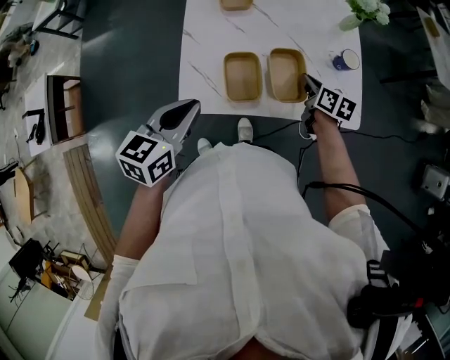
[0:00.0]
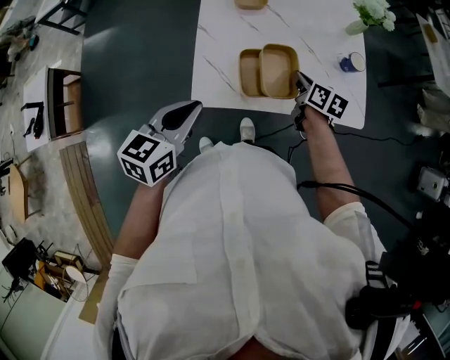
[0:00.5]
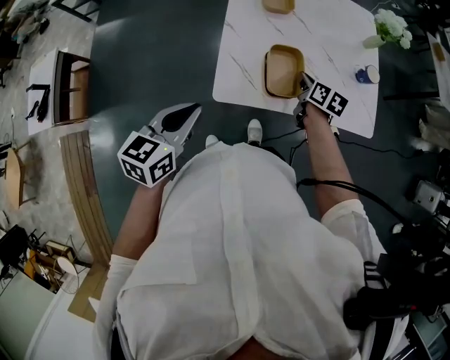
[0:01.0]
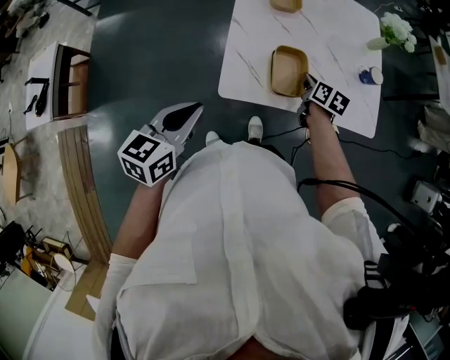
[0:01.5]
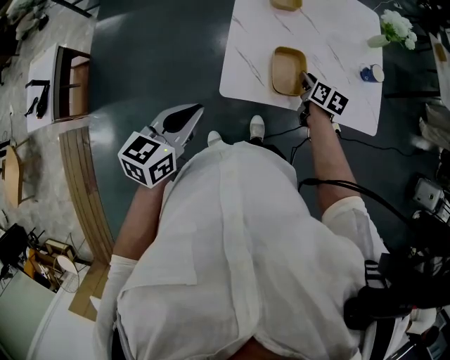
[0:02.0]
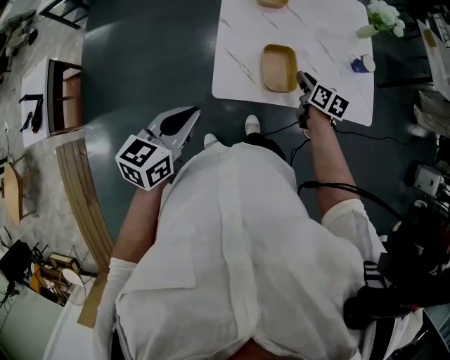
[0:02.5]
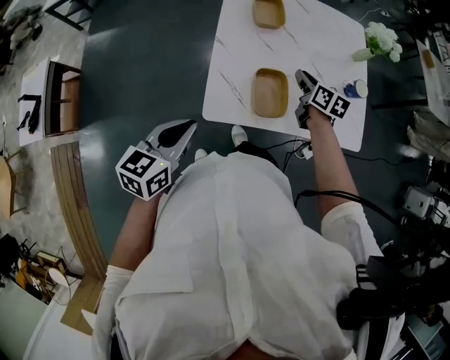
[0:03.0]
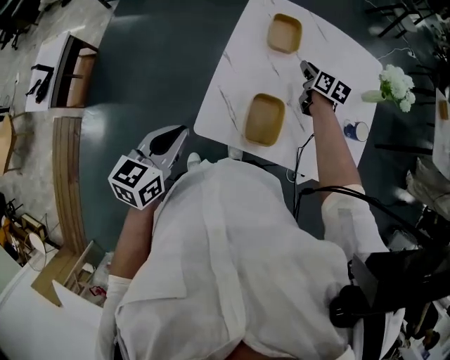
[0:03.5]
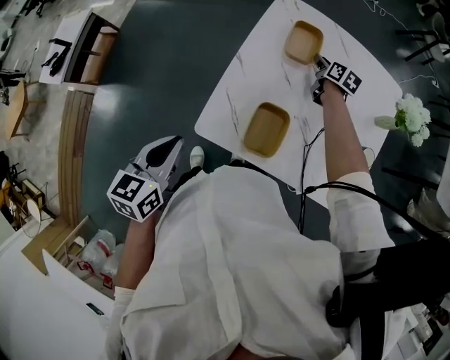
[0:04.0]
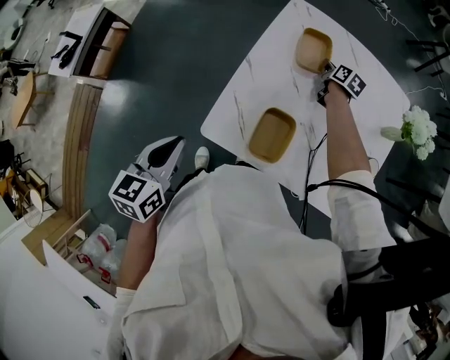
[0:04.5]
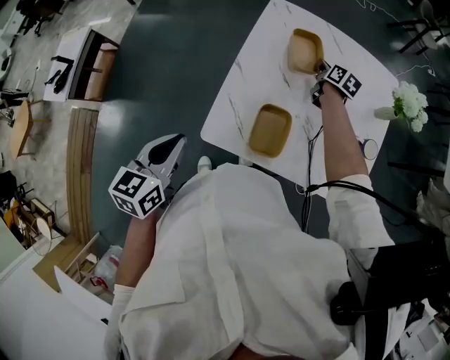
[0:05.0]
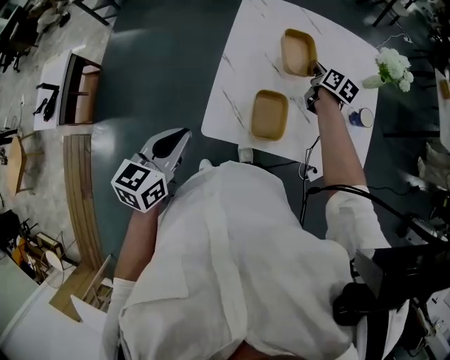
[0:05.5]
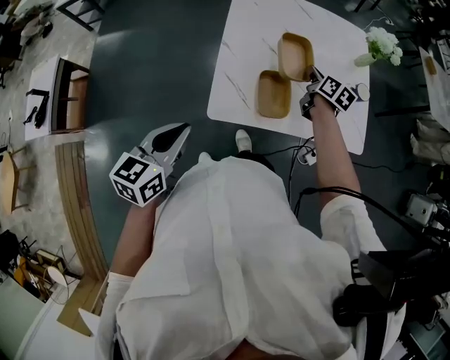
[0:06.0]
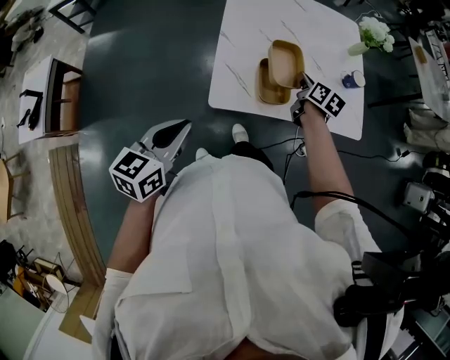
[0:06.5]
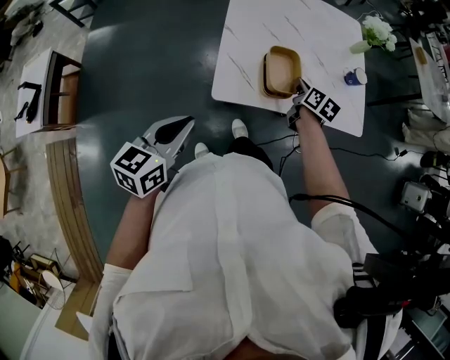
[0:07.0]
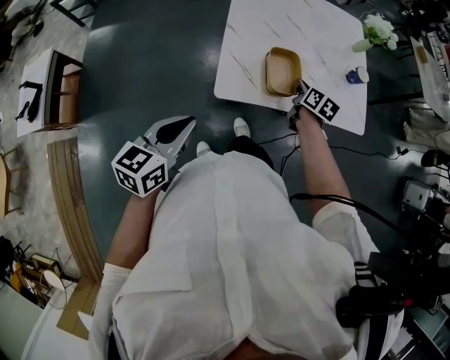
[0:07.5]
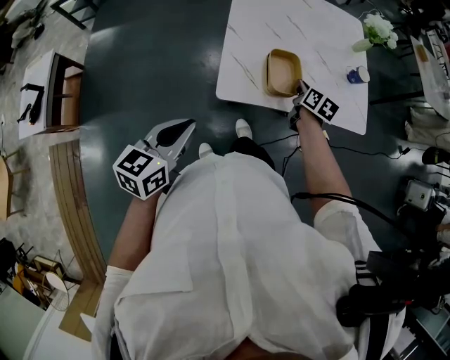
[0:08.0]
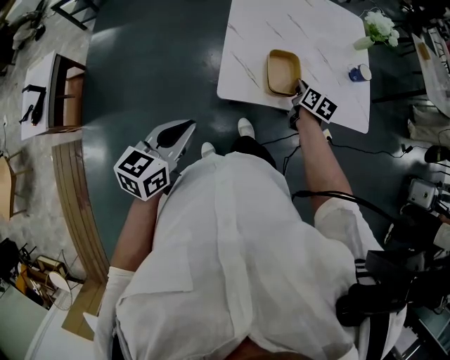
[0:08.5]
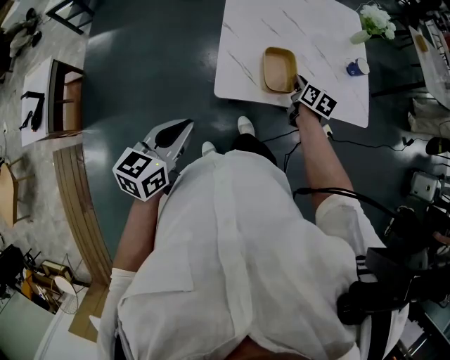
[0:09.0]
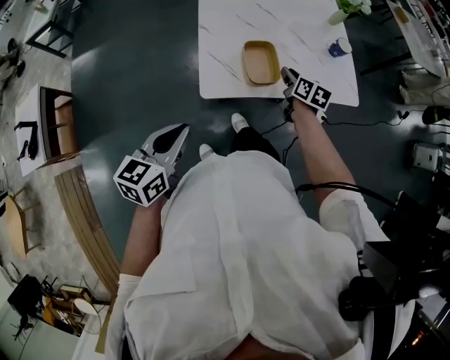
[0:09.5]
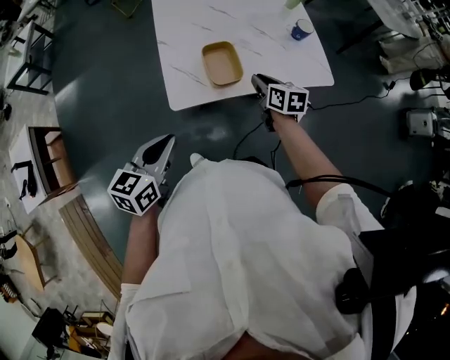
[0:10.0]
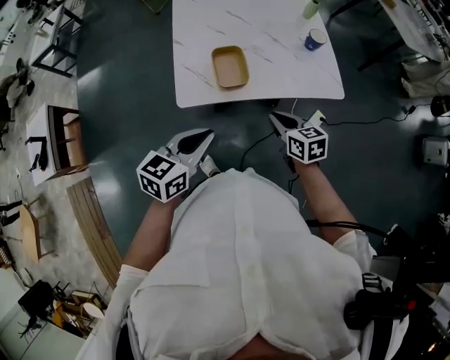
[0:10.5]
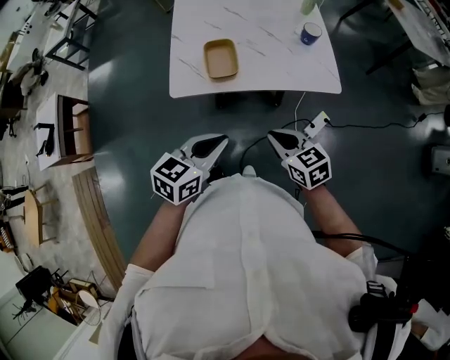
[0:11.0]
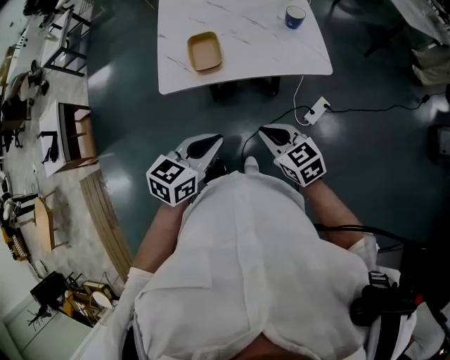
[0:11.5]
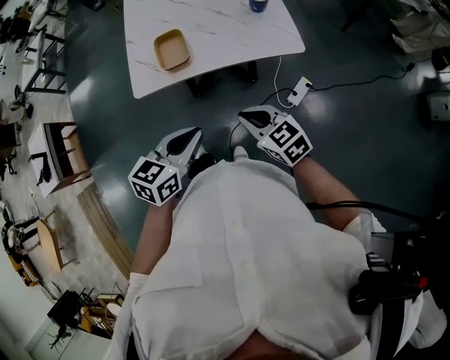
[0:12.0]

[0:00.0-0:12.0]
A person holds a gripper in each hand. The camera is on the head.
0:00.0 to 0:02.0: The left gripper heads to the left and backward, covering some 15 cm, while the right gripper heads to the left, covering roughly 10 cm.
0:02.0 to 0:04.0: The right gripper is displaced forward by roughly 30 cm, while the left gripper heads forward, covering about 5 cm, and changes its angle by roughly 30 degrees.
0:04.0 to 0:06.0: The right gripper travels backward by roughly 25 cm, and rotates some 20 degrees; the left gripper changes place by approximately 5 cm, and changes its angle by approximately 20 degrees.
0:06.0 to 0:08.0: The left gripper is displaced backward by approximately 5 cm; the right gripper shifts about 15 cm backward.
0:08.0 to 0:10.0: The right gripper is displaced backward by about 5 cm; the left gripper moves to the right, approximately 5 cm.
0:10.0 to 0:12.0: The left gripper shifts some 25 cm to the right. Meanwhile the right gripper goes approximately 25 cm backward, and changes its angle by some 40 degrees.

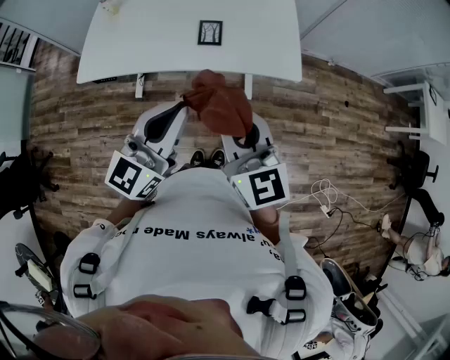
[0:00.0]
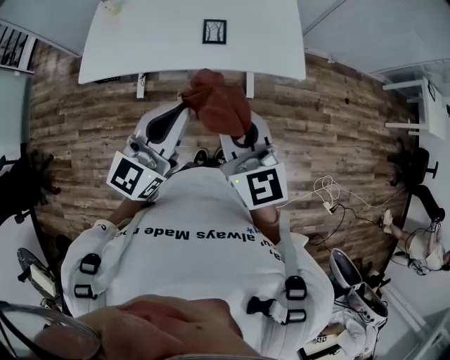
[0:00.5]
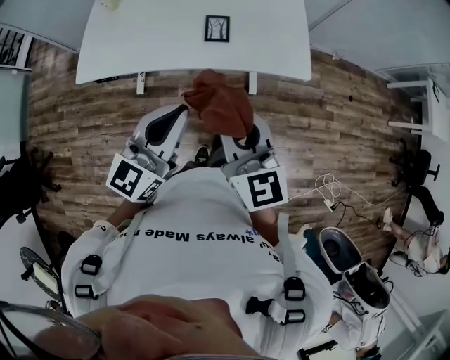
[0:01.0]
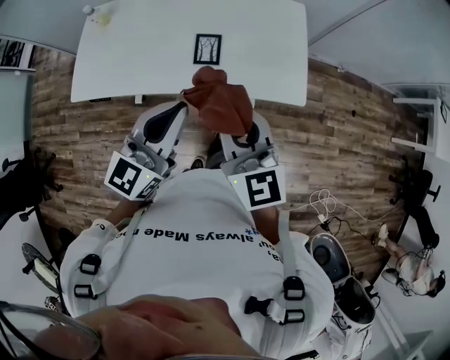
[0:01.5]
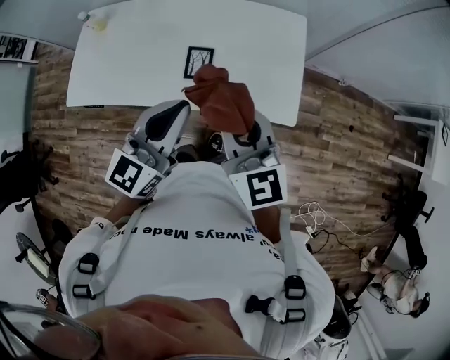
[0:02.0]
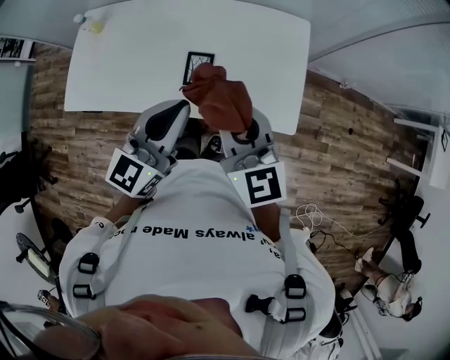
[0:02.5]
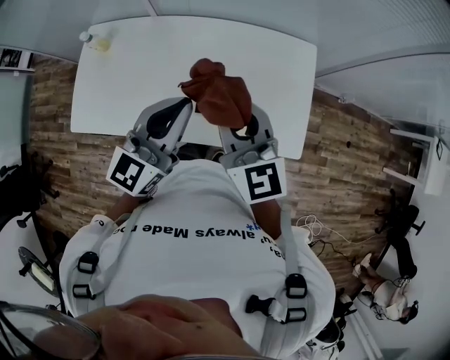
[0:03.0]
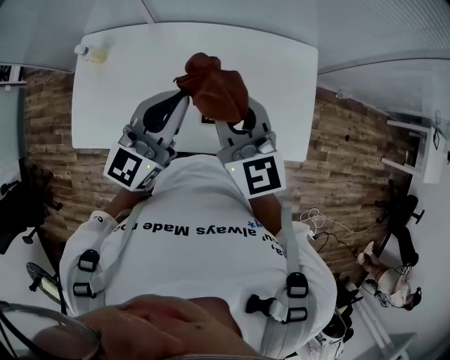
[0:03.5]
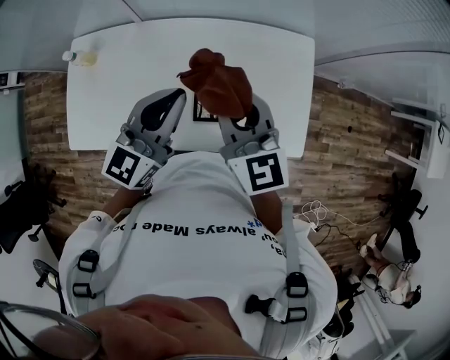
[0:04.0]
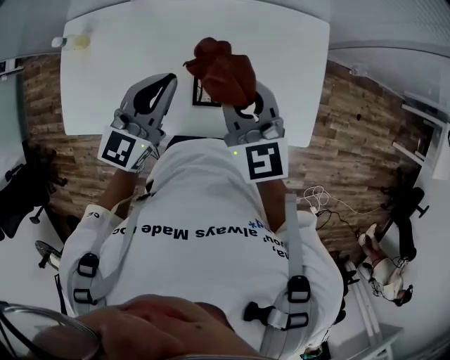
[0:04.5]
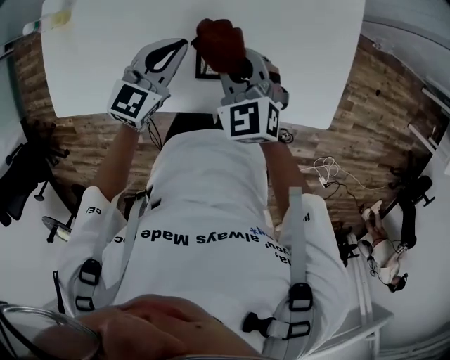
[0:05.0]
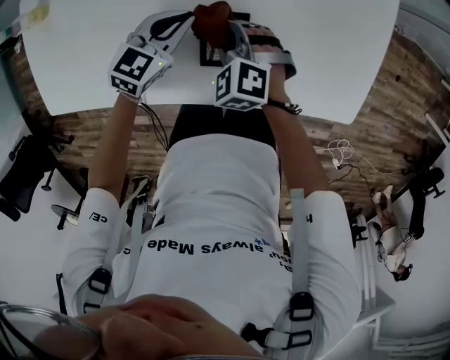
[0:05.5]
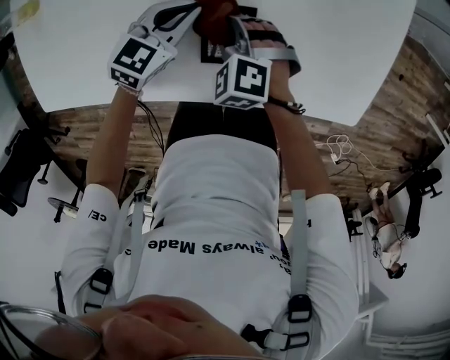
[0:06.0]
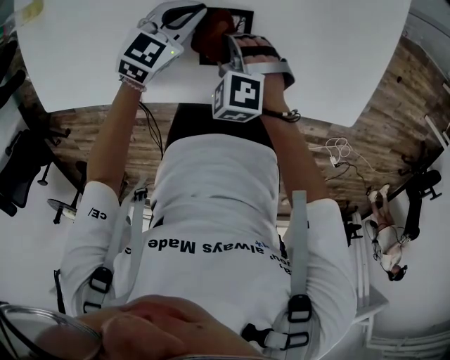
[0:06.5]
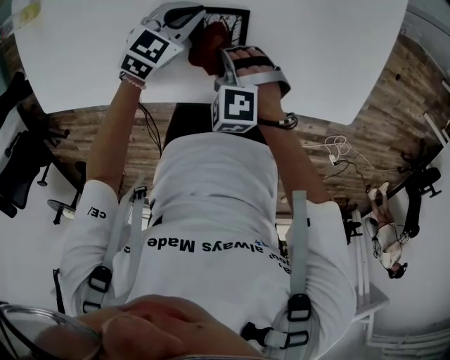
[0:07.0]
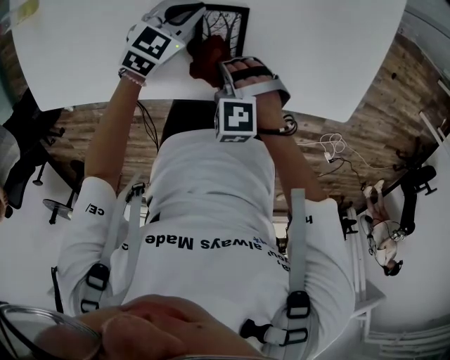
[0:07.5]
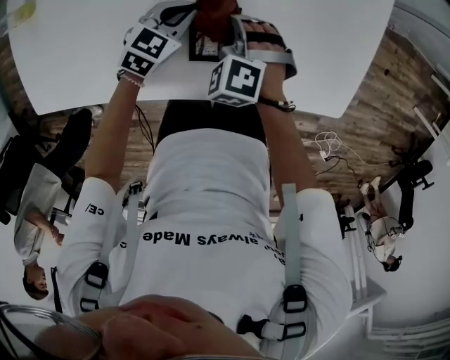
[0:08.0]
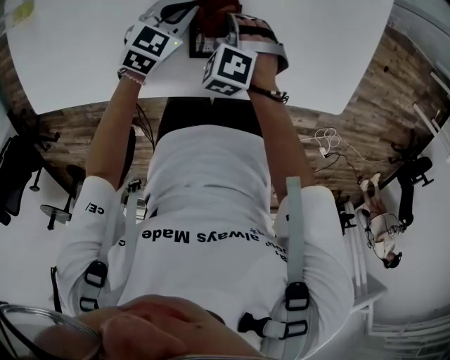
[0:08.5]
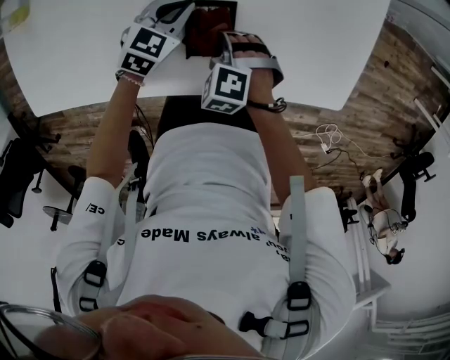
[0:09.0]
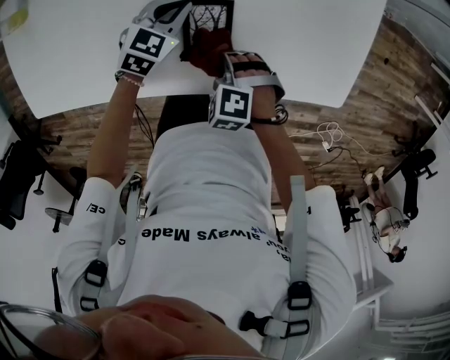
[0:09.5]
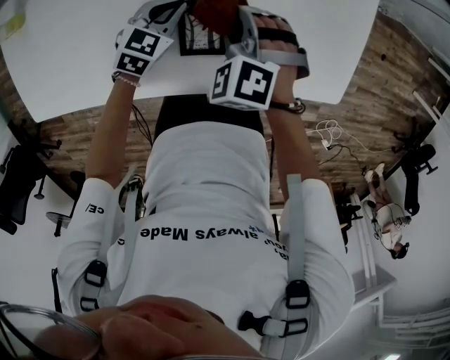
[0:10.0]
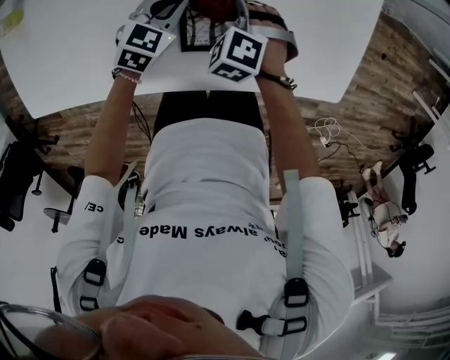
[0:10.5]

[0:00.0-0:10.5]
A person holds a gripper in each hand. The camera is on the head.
0:00.0 to 0:02.0: Both grippers move forward, some 40 cm.
0:02.0 to 0:04.0: The grippers both shift forward by some 35 cm.
0:04.0 to 0:06.5: The two grippers go about 50 cm downward. The left gripper tilts its fingers approximately 30 degrees downward. The right gripper tilts its fingers about 50 degrees downward.
0:06.5 to 0:08.5: The right gripper changes place by about 5 cm.
0:08.5 to 0:10.5: The right gripper travels backward and back again, approximately 10 cm each way.

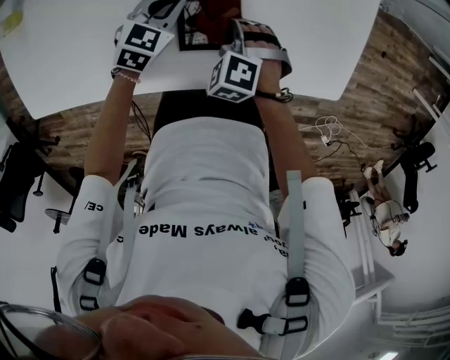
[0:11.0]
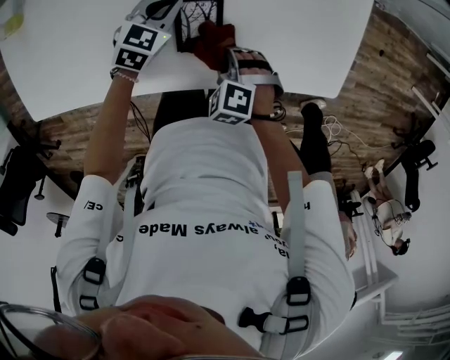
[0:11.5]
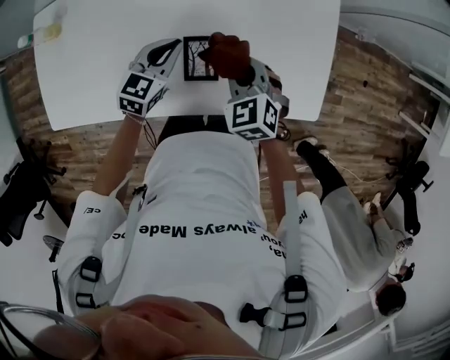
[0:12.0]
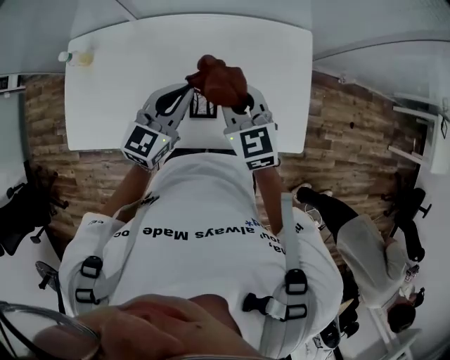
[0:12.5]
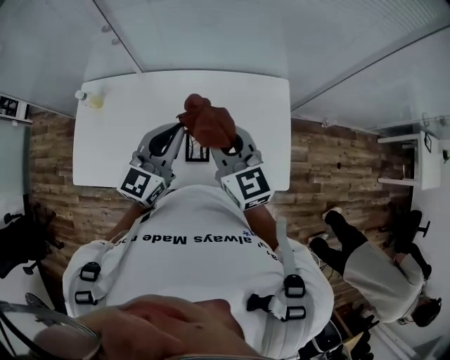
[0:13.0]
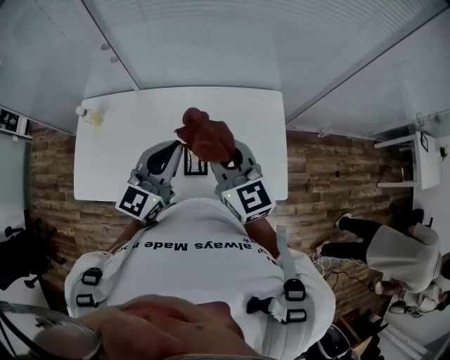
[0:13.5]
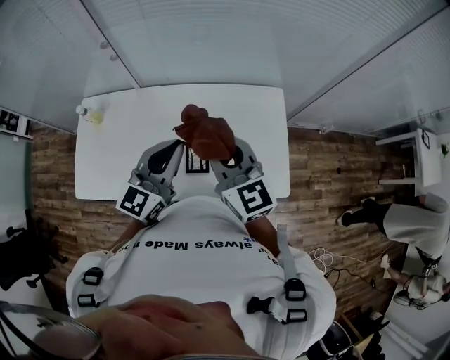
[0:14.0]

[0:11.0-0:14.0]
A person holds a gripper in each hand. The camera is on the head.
0:11.0 to 0:12.5: Both grippers move upward, approximately 50 cm. The right gripper tips its fingers upward by approximately 50 degrees. The left gripper tips its fingers upward by roughly 30 degrees.
0:12.5 to 0:14.0: The grippers both shift upward and backward by roughly 20 cm.

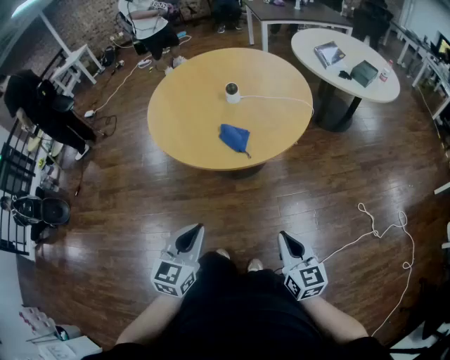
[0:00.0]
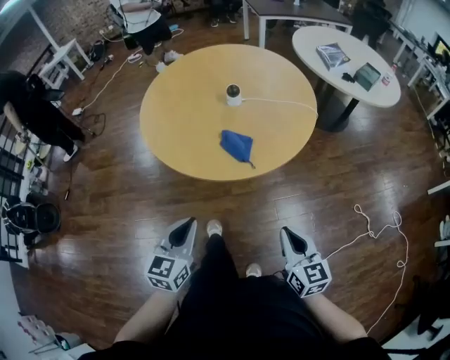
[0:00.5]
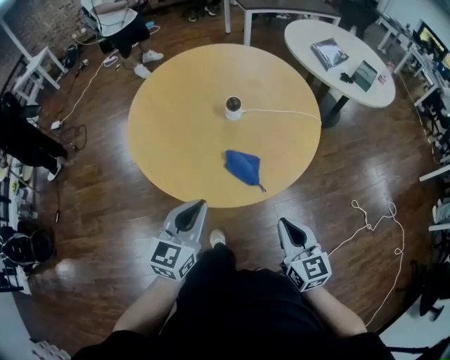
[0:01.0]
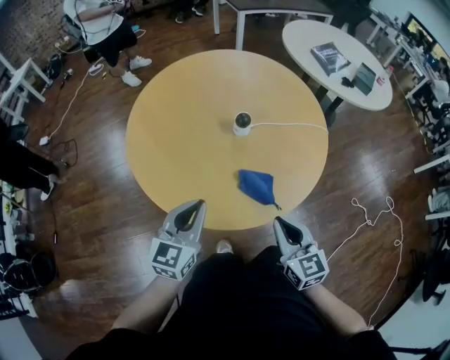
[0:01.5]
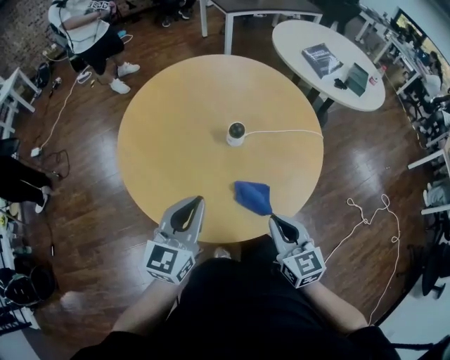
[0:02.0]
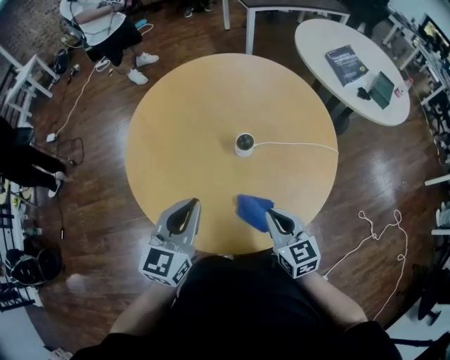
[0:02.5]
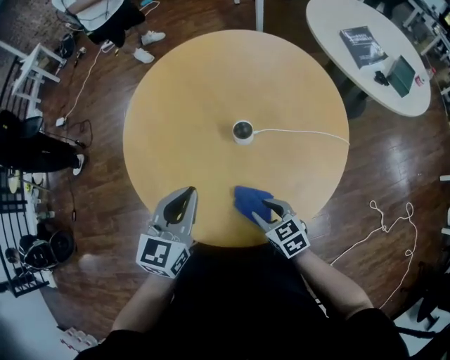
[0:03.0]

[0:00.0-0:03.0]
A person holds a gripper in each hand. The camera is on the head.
0:00.0 to 0:01.5: Both grippers travel together forward and to the left, some 30 cm.
0:01.5 to 0:03.0: The left gripper is displaced forward by roughly 10 cm, while the right gripper travels downward and forward by about 15 cm, changes its angle by some 30 degrees, and opens up.
